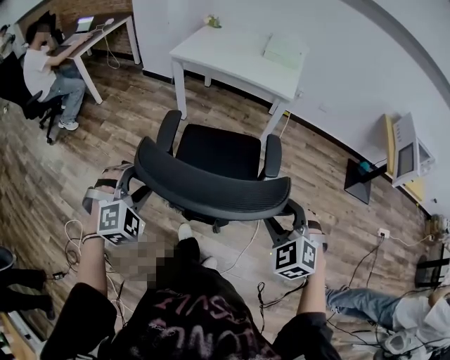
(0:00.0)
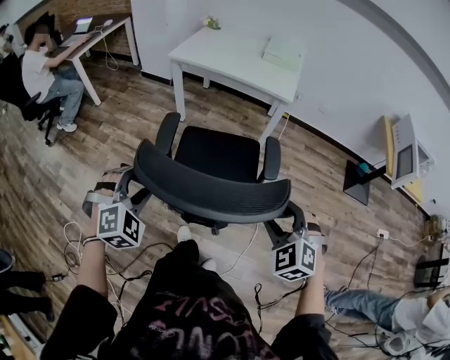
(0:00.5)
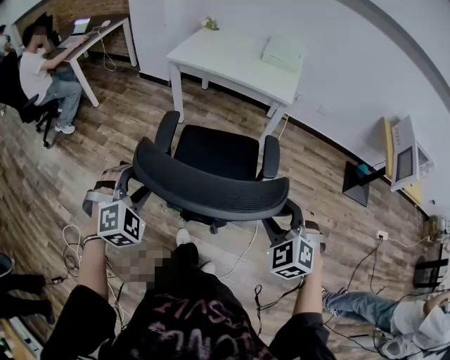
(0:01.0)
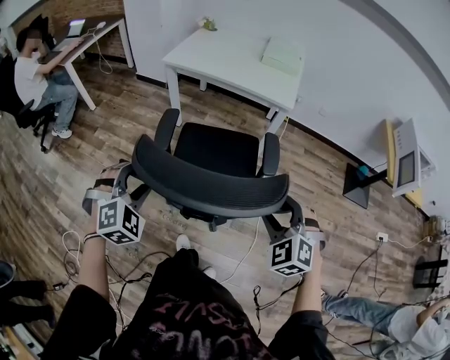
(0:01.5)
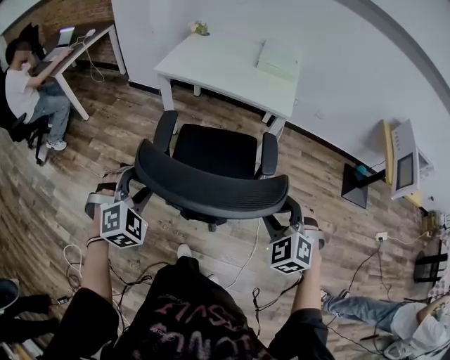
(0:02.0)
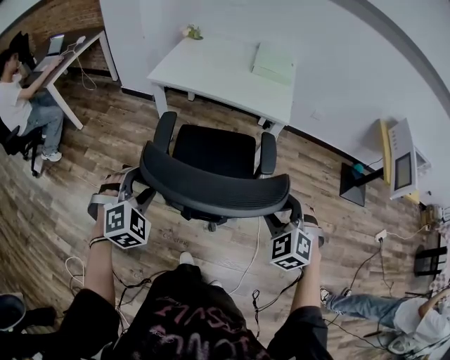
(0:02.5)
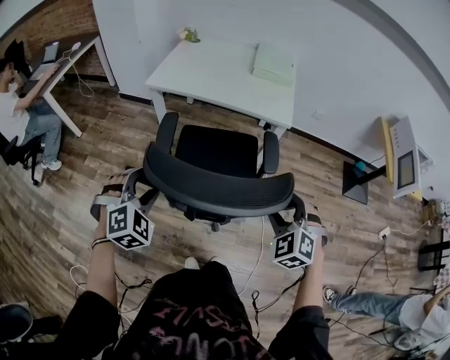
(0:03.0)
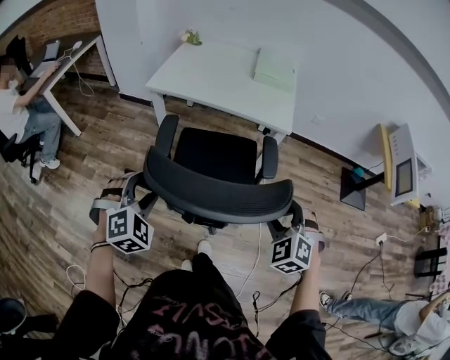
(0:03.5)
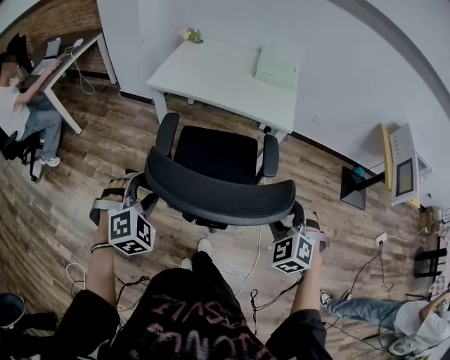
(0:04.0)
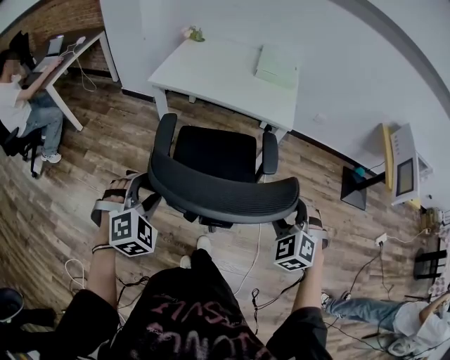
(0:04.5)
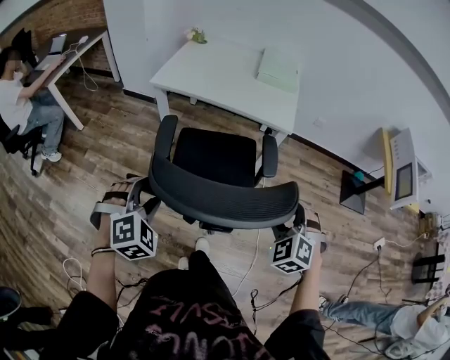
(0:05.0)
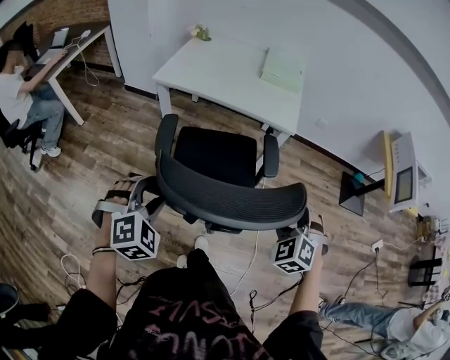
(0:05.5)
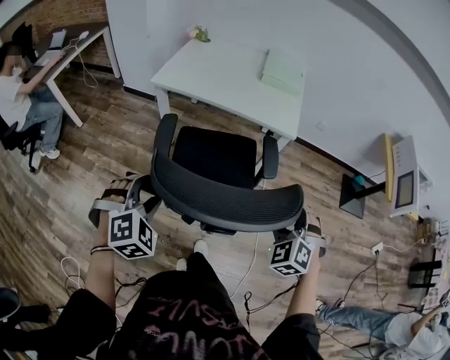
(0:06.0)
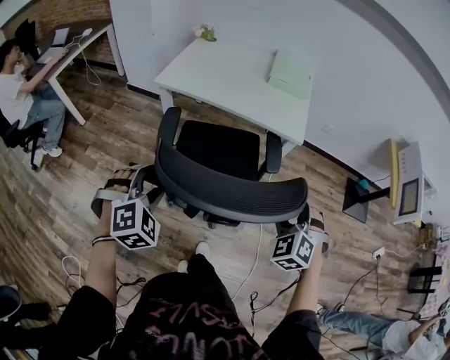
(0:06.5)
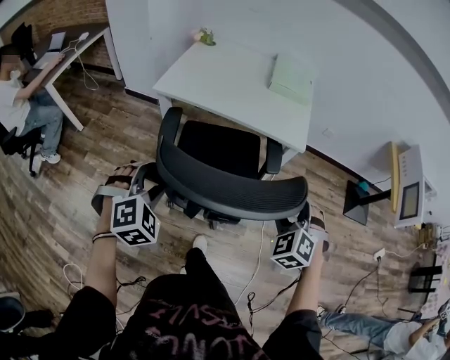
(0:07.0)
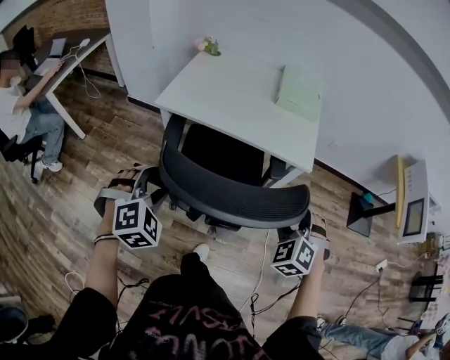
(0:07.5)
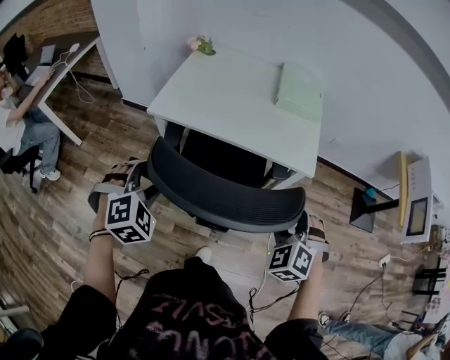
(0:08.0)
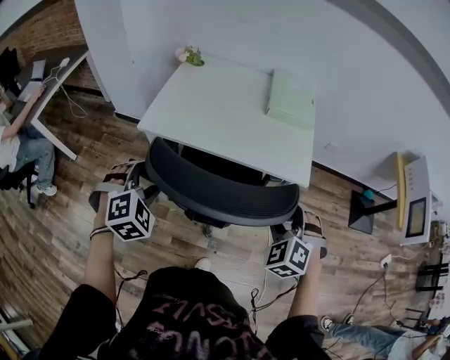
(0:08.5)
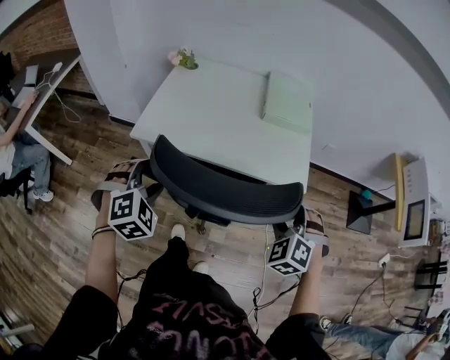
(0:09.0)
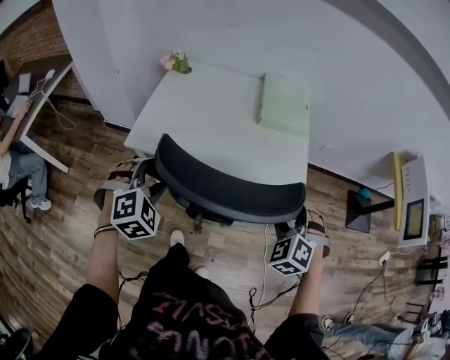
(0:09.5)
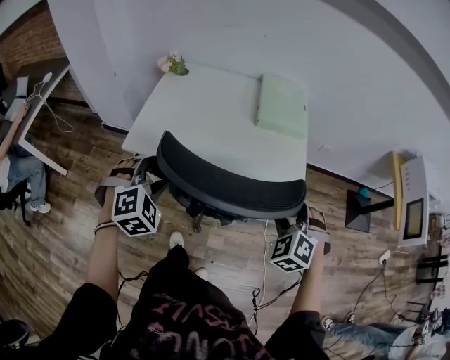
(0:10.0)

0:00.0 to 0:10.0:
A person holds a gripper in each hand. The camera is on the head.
0:00.0 to 0:02.0: Both grippers move forward, about 15 cm.
0:02.0 to 0:04.0: Both grippers travel together forward, about 10 cm.
0:04.0 to 0:06.0: The grippers move only a little.
0:06.0 to 0:08.0: The right gripper heads forward and to the left, covering roughly 20 cm, while the left gripper heads forward, covering about 25 cm.
0:08.0 to 0:10.0: The grippers both shift forward by some 15 cm.

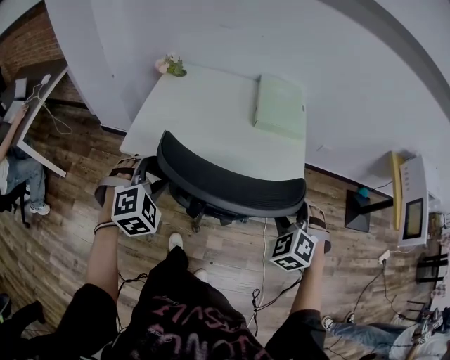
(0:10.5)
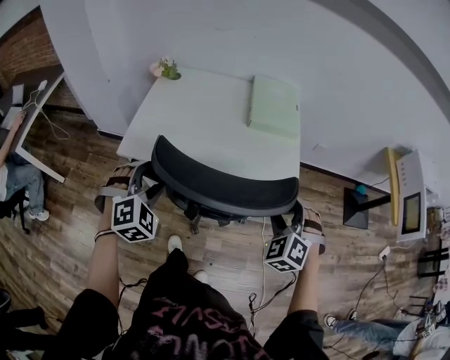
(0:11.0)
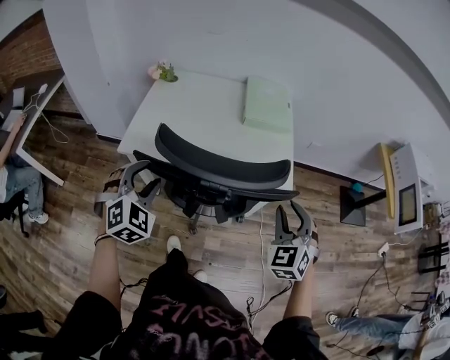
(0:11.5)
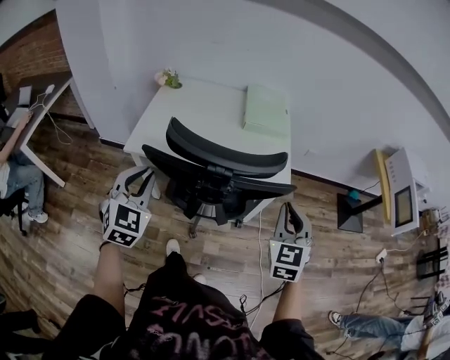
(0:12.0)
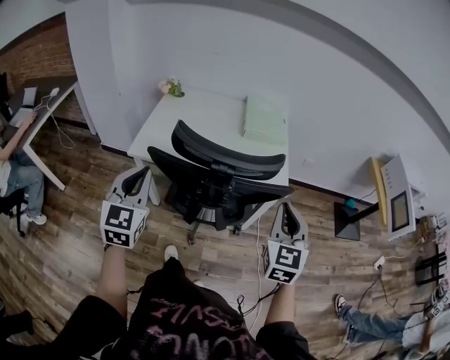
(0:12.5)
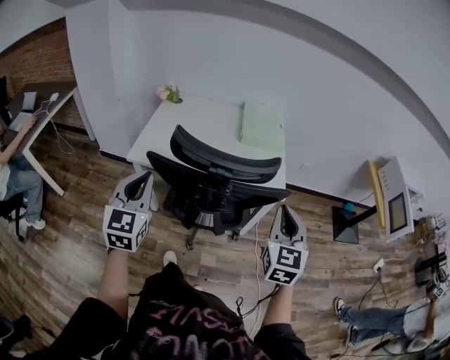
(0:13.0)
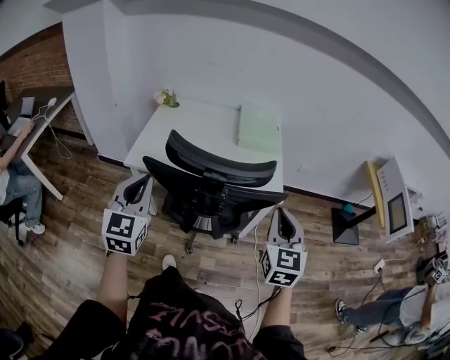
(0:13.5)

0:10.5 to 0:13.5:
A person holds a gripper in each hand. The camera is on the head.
0:10.5 to 0:12.0: Both grippers travel together backward and upward, some 15 cm. The left gripper swivels about 40 degrees, and closes, while the right gripper rotates around the line of its fingers by some 40 degrees, clockwise from behind, and closes up.
0:12.0 to 0:13.5: The left gripper is displaced upward by some 5 cm, and turns by about 20 degrees.

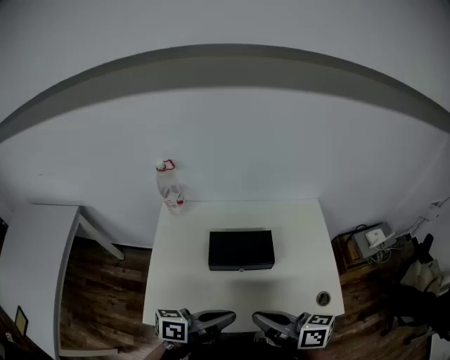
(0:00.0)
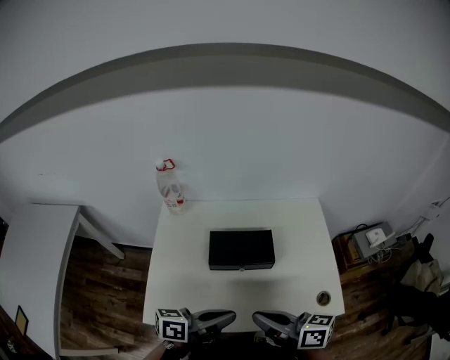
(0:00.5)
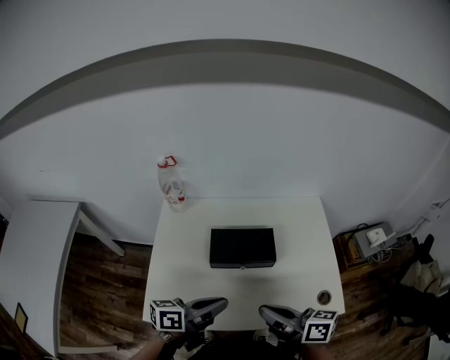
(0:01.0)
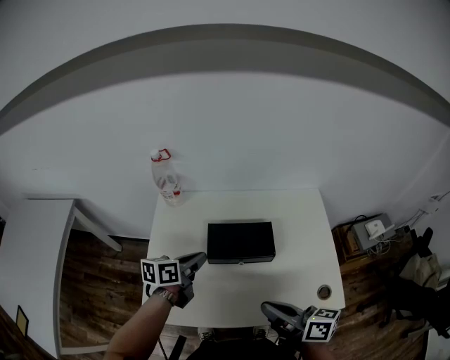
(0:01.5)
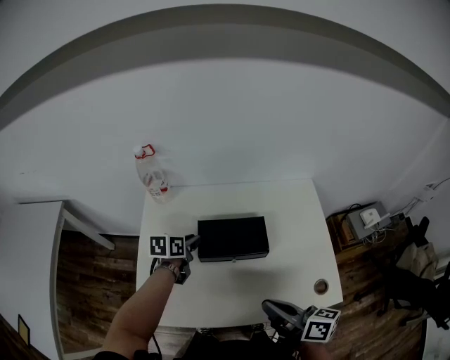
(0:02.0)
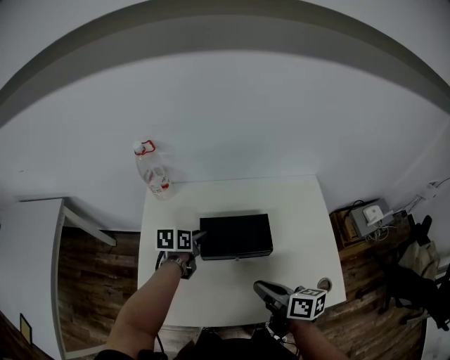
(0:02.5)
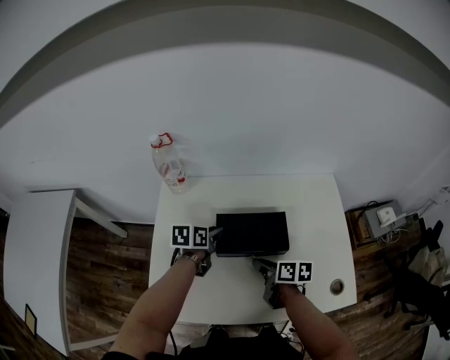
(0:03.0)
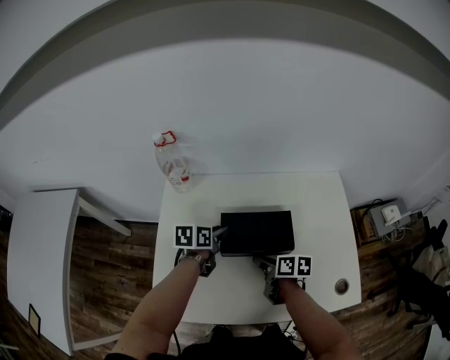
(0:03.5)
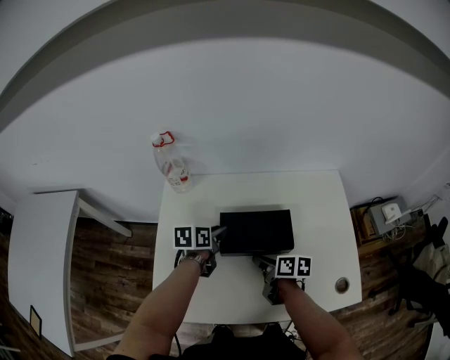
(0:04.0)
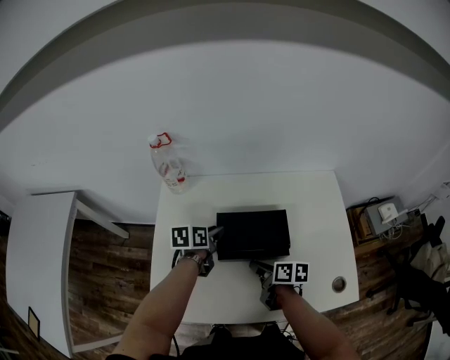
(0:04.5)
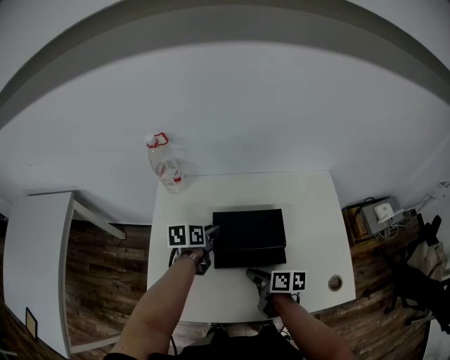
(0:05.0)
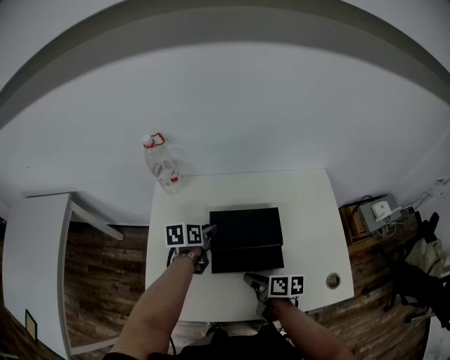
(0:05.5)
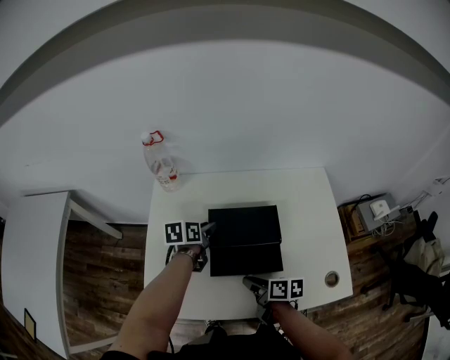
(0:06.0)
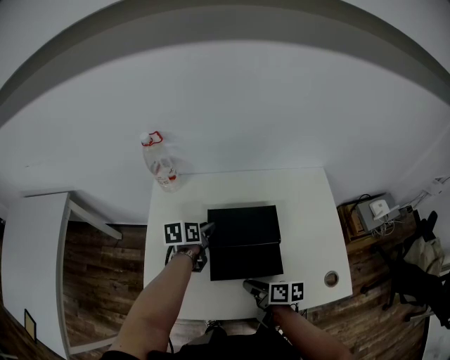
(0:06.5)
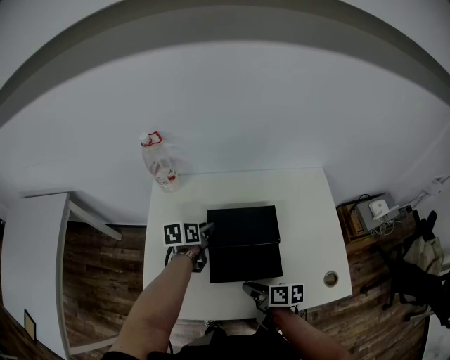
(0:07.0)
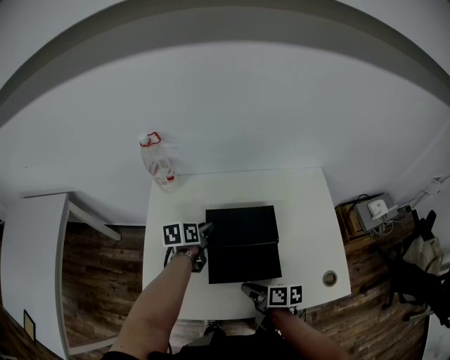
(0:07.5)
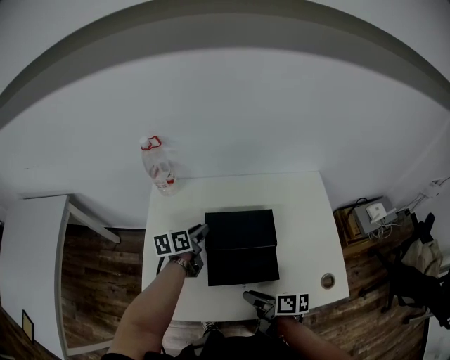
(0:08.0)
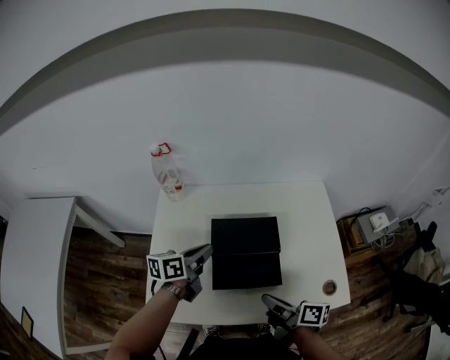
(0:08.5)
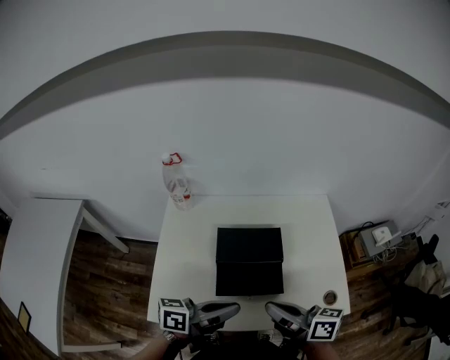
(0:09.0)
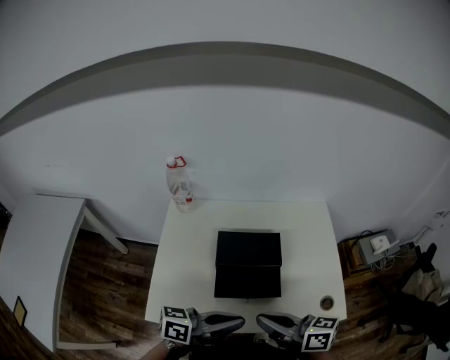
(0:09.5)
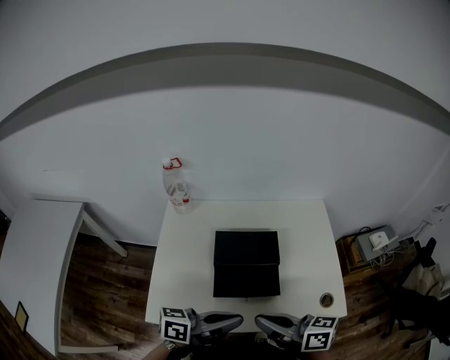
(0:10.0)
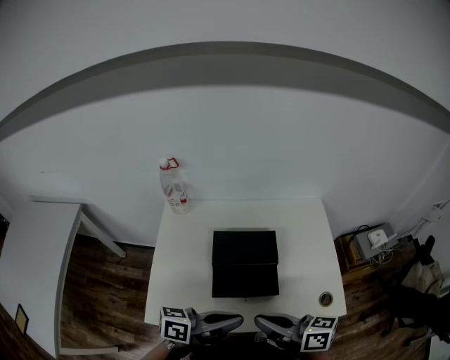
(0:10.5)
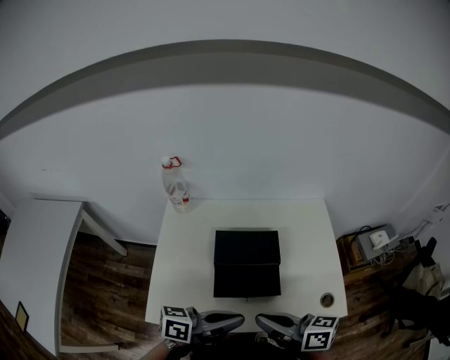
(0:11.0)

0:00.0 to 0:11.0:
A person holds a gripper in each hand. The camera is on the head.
0:00.0 to 0:02.0: The right gripper ends up roughly 5 cm from where it was; the left gripper travels forward, downward and to the left by some 30 cm, tips its fingers downward by about 40 degrees, and opens up.
0:02.0 to 0:03.5: The right gripper shifts some 25 cm downward and forward, swivels some 30 degrees, and opens up.
0:03.5 to 0:05.5: The right gripper moves backward, approximately 10 cm.
0:05.5 to 0:07.5: The grippers stay close to where they were, moving slightly.
0:07.5 to 0:09.0: The left gripper heads backward and upward, covering about 30 cm, tilts its fingers roughly 40 degrees upward, and closes up. Meanwhile the right gripper is displaced upward by about 20 cm, and rotates about 30 degrees.
0:09.0 to 0:11.0: The grippers stay close to where they were, moving slightly.

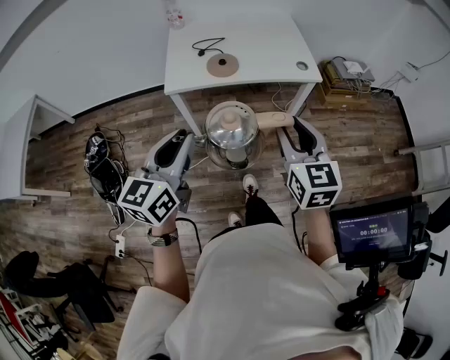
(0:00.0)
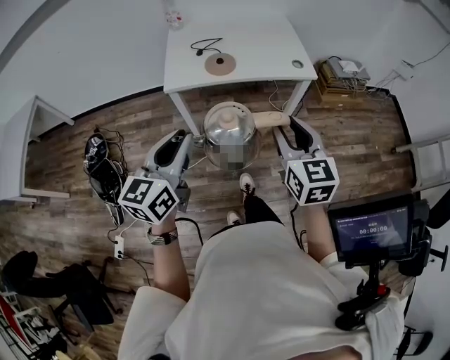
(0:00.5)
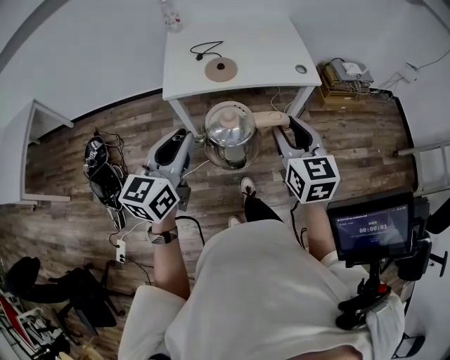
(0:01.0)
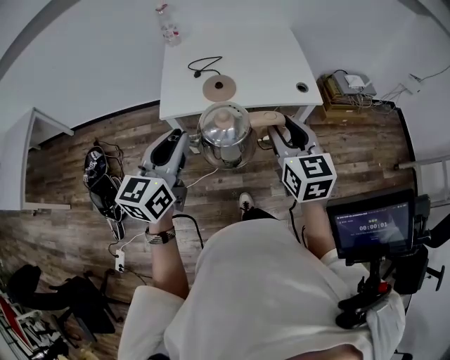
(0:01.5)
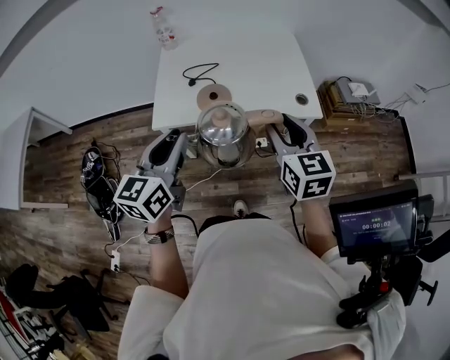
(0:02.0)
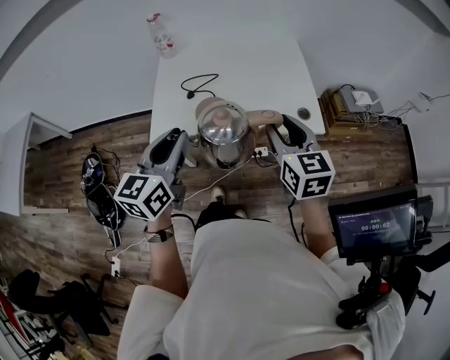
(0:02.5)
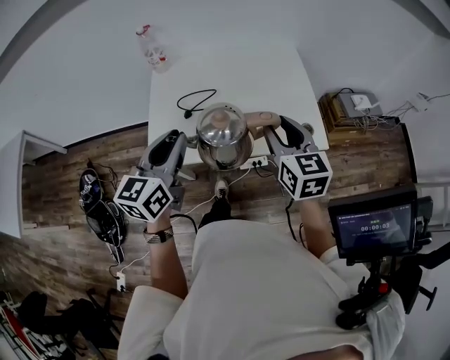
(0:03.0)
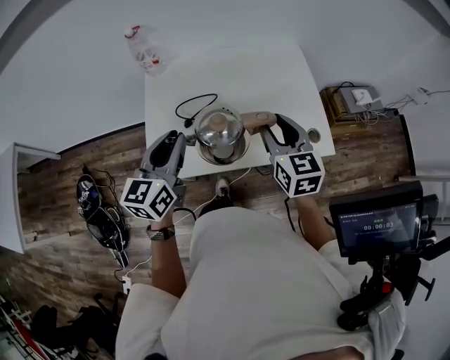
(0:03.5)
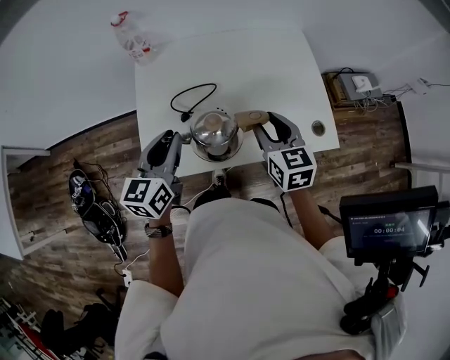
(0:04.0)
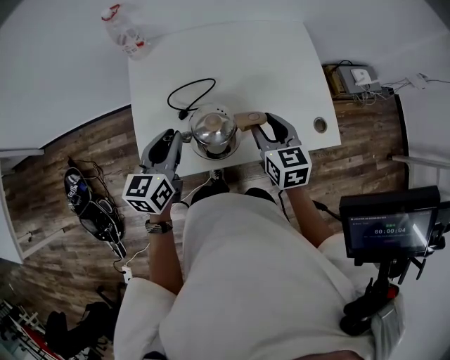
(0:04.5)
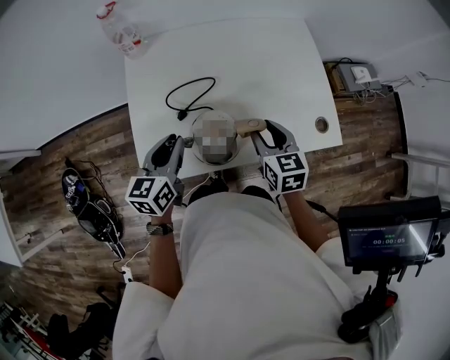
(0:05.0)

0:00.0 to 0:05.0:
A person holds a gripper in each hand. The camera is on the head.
0:00.0 to 0:02.5: The two grippers go about 25 cm forward.
0:02.5 to 0:05.0: The right gripper is displaced downward, forward and to the left by some 30 cm. Meanwhile the left gripper shifts approximately 30 cm forward, downward and to the left.
